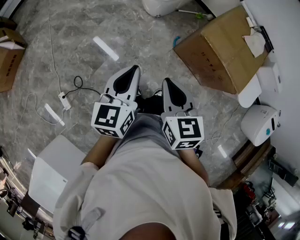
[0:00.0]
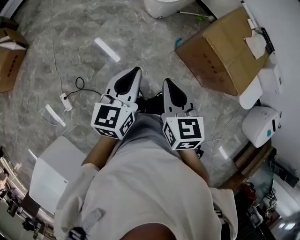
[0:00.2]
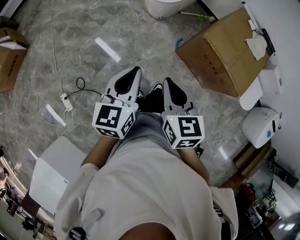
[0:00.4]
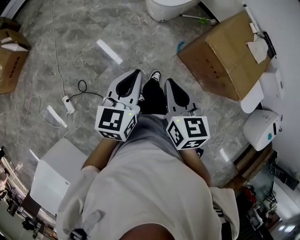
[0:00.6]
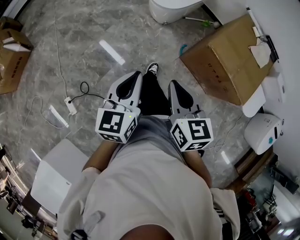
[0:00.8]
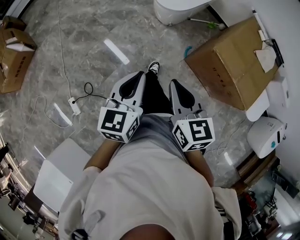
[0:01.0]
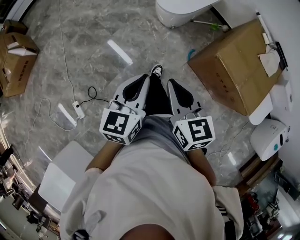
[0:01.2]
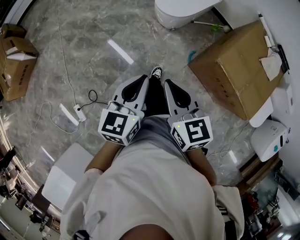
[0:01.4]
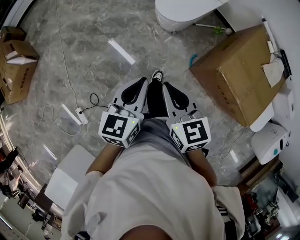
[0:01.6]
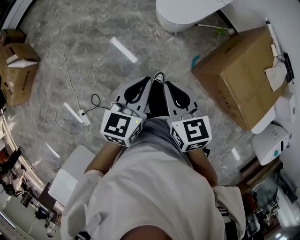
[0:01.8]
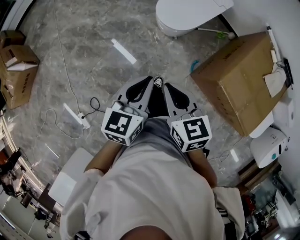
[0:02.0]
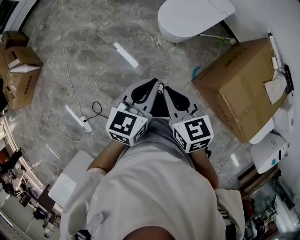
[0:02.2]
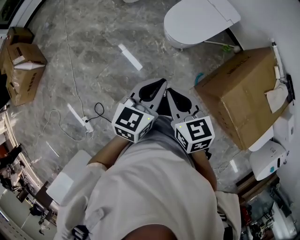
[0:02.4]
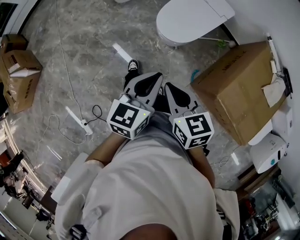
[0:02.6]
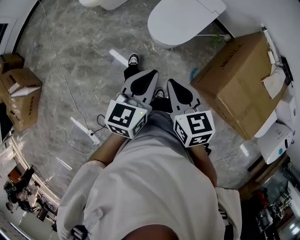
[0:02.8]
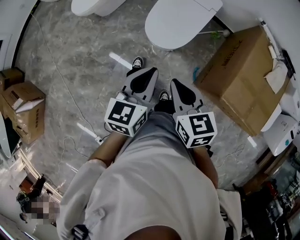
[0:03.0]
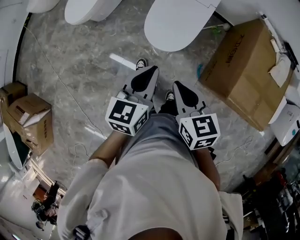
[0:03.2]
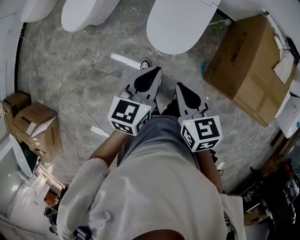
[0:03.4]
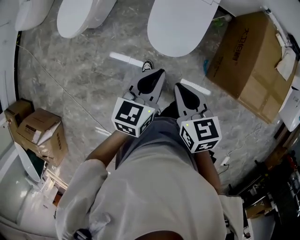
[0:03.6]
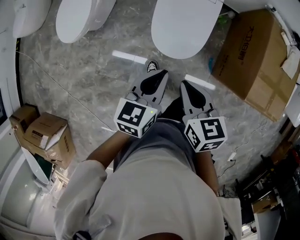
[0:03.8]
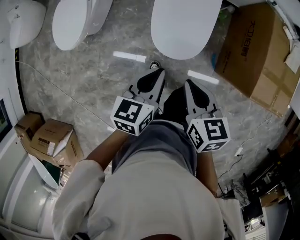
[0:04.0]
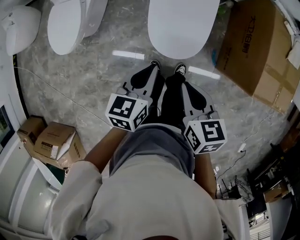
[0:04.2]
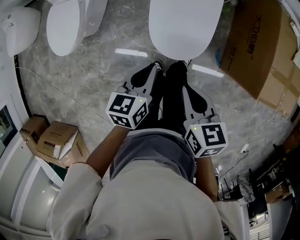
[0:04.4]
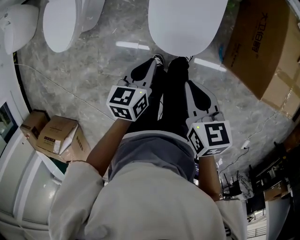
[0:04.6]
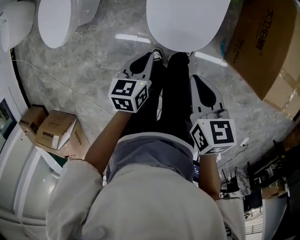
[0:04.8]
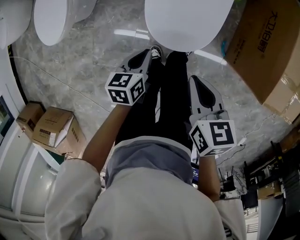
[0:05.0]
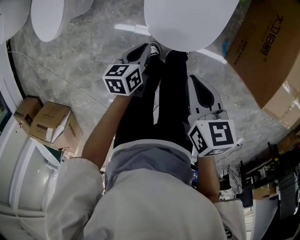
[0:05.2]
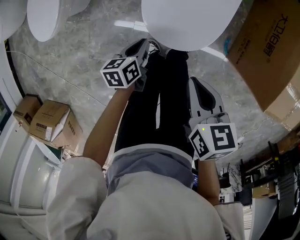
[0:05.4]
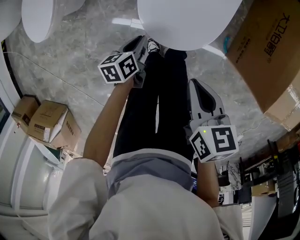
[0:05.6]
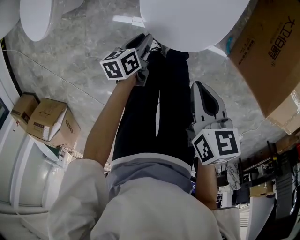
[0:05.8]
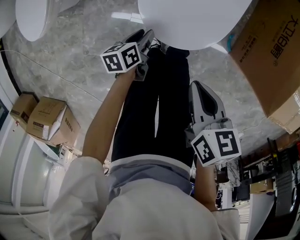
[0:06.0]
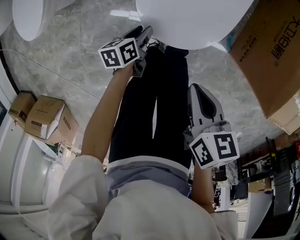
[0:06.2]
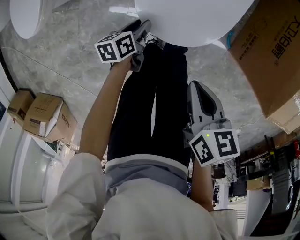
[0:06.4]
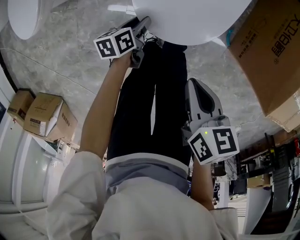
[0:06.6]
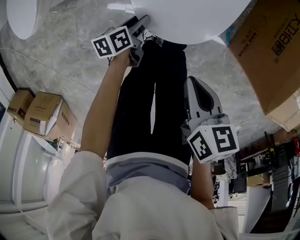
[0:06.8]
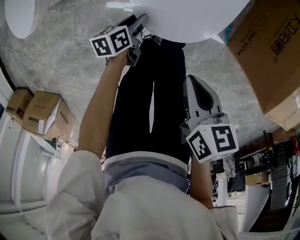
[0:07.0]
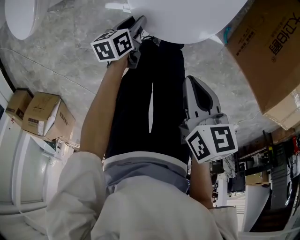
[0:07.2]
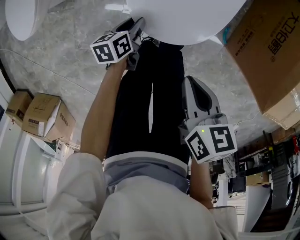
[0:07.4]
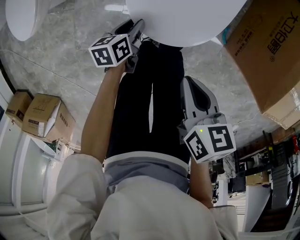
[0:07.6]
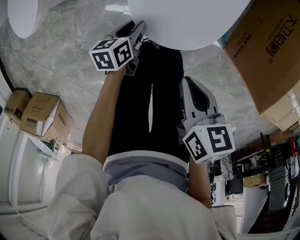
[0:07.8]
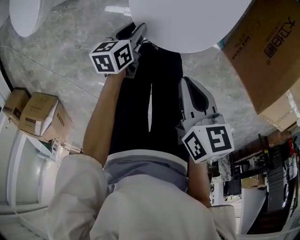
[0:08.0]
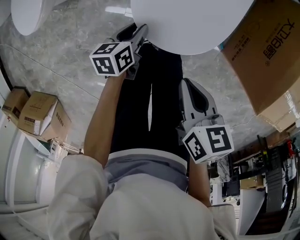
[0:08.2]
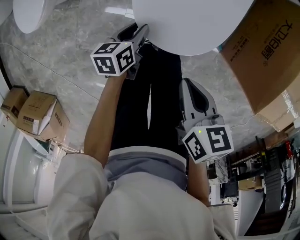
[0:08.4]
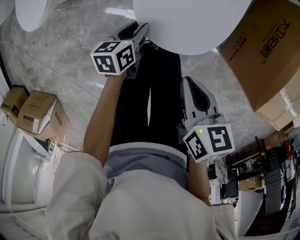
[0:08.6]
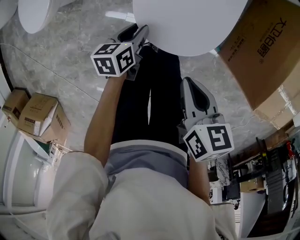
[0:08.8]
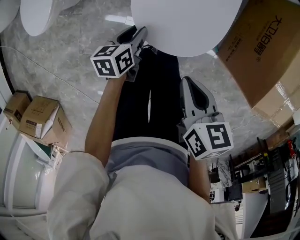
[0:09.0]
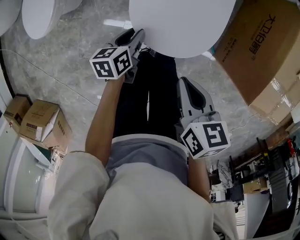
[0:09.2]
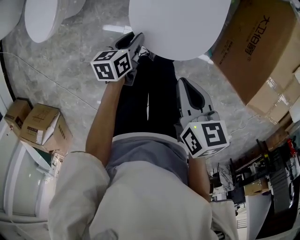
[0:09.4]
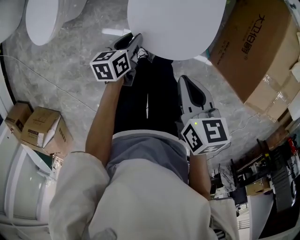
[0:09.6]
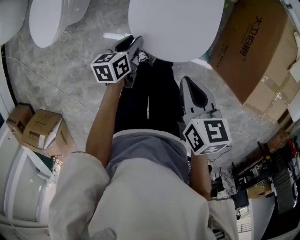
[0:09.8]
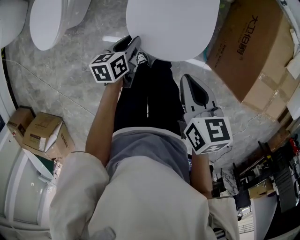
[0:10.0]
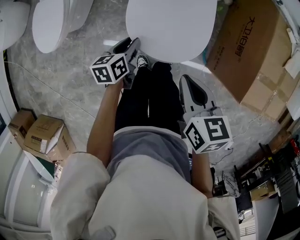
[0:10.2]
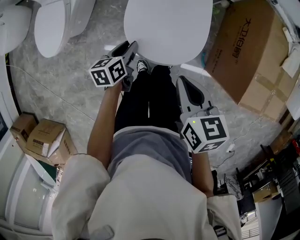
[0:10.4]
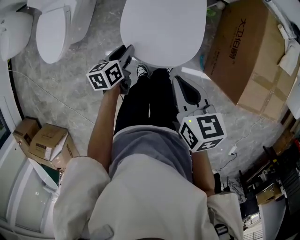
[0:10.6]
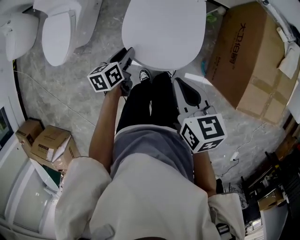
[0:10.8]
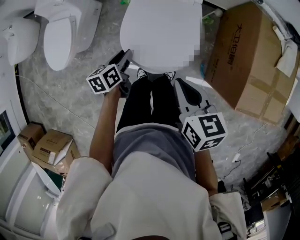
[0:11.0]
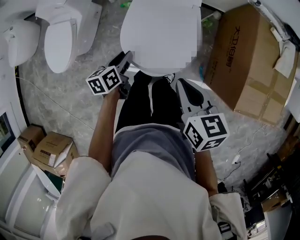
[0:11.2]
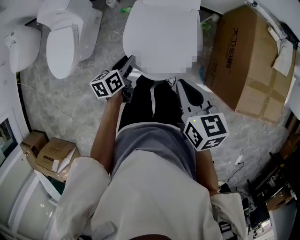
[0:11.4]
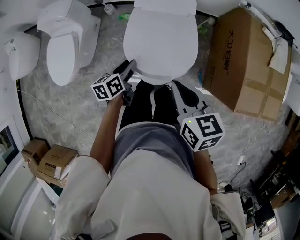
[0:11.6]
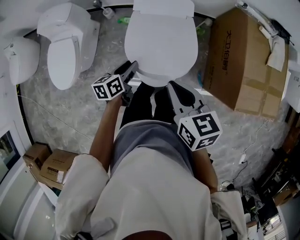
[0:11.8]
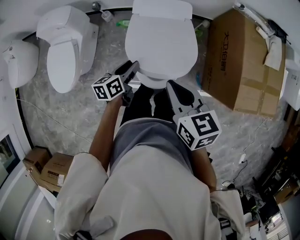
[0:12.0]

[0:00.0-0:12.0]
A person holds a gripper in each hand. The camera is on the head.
0:00.0 to 0:01.6: Both grippers travel together forward, approximately 25 cm.
0:01.6 to 0:03.0: Both grippers move forward, some 30 cm.
0:03.0 to 0:04.4: Both grippers travel together forward, downward and to the left, about 30 cm. The left gripper rotates some 30 degrees. The right gripper rotates roughly 30 degrees.
0:04.4 to 0:06.0: The right gripper heads downward, covering approximately 20 cm. The left gripper goes approximately 35 cm downward, turns by approximately 30 degrees, and opens its fingers.
0:06.0 to 0:07.6: The grippers stay close to where they were, moving slightly.
0:07.6 to 0:09.0: The two grippers go about 10 cm upward.
0:09.0 to 0:10.4: The two grippers go about 10 cm upward.
0:10.4 to 0:12.0: Both grippers travel together upward and forward, approximately 10 cm.

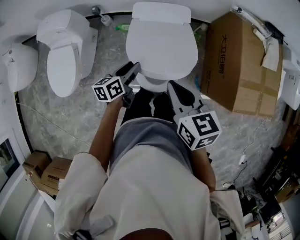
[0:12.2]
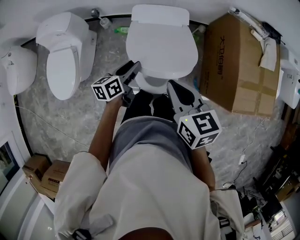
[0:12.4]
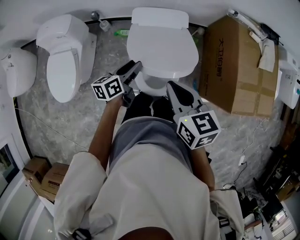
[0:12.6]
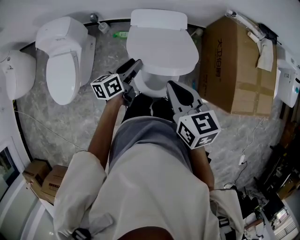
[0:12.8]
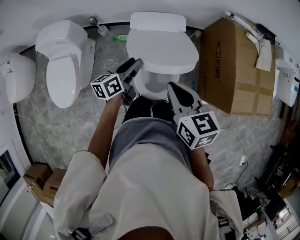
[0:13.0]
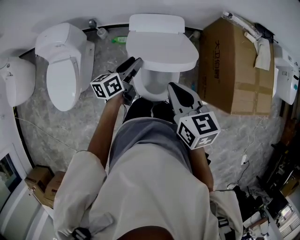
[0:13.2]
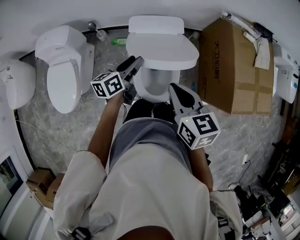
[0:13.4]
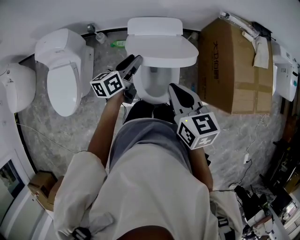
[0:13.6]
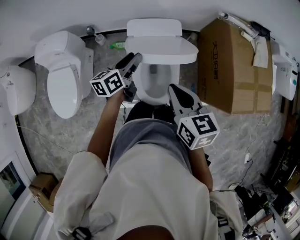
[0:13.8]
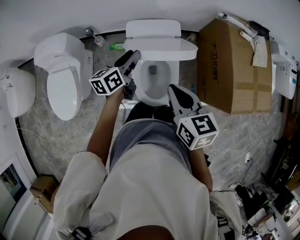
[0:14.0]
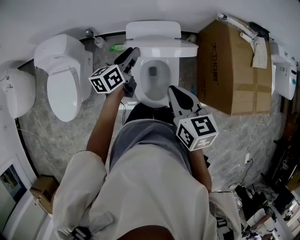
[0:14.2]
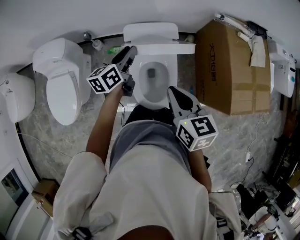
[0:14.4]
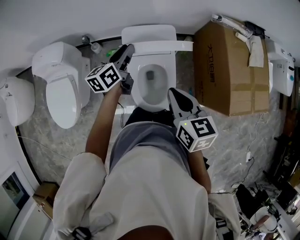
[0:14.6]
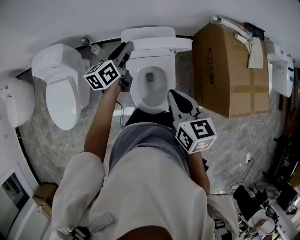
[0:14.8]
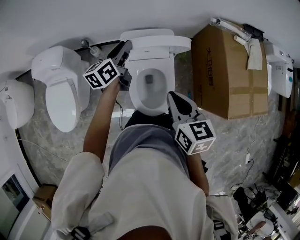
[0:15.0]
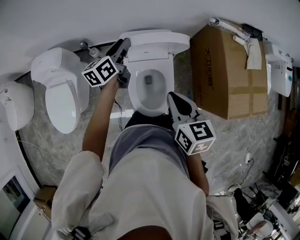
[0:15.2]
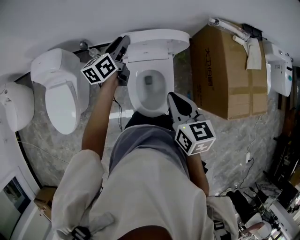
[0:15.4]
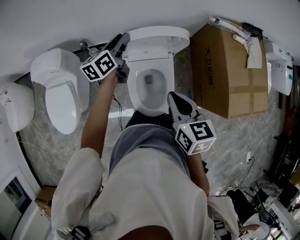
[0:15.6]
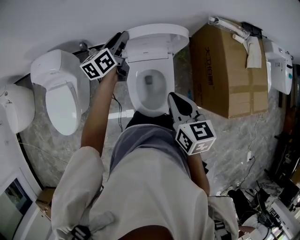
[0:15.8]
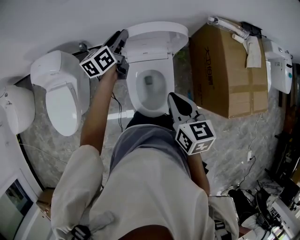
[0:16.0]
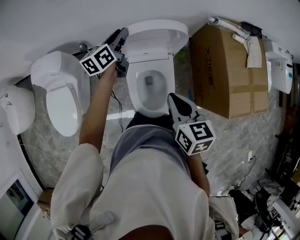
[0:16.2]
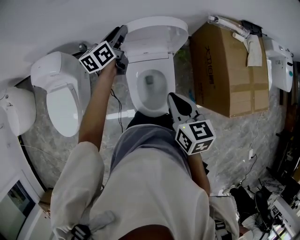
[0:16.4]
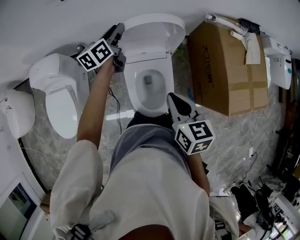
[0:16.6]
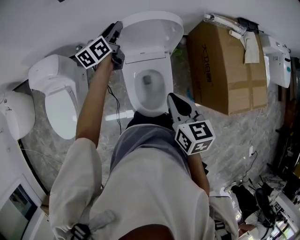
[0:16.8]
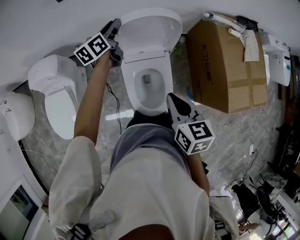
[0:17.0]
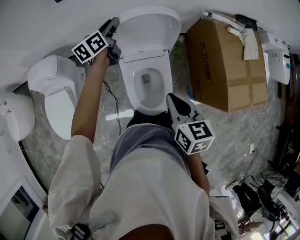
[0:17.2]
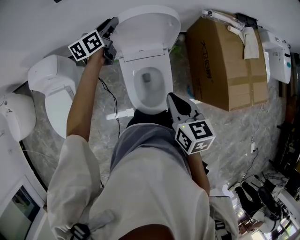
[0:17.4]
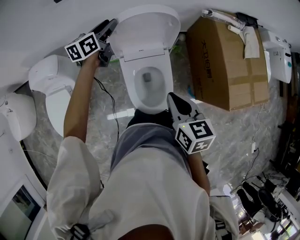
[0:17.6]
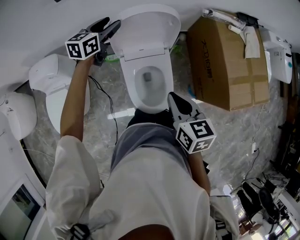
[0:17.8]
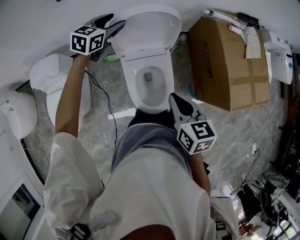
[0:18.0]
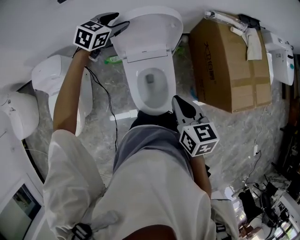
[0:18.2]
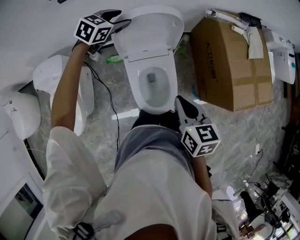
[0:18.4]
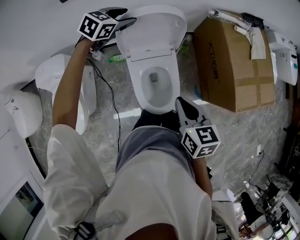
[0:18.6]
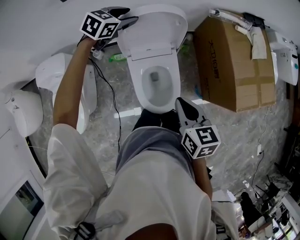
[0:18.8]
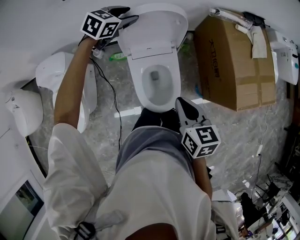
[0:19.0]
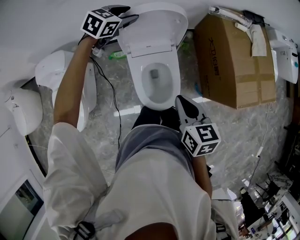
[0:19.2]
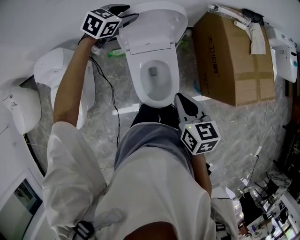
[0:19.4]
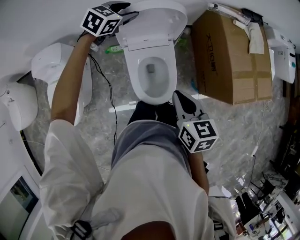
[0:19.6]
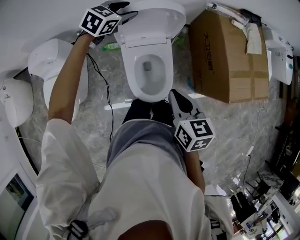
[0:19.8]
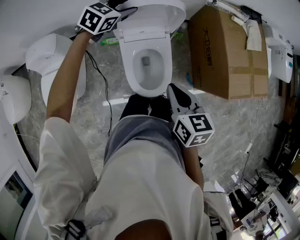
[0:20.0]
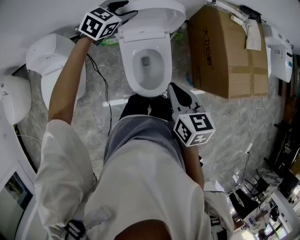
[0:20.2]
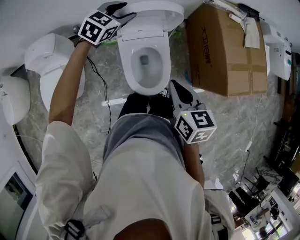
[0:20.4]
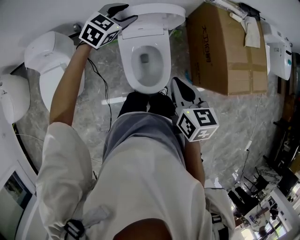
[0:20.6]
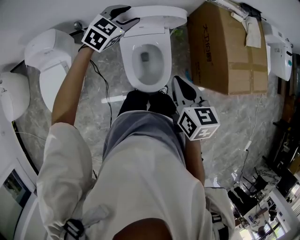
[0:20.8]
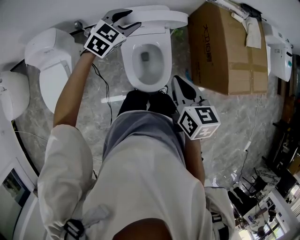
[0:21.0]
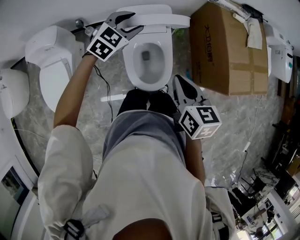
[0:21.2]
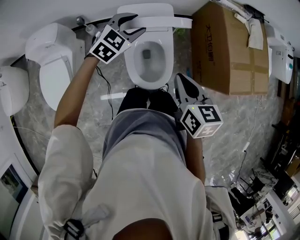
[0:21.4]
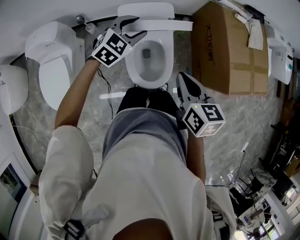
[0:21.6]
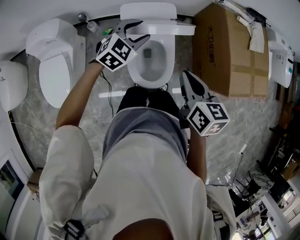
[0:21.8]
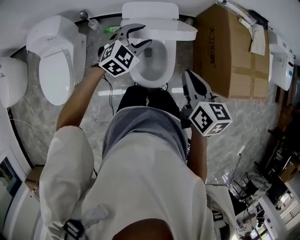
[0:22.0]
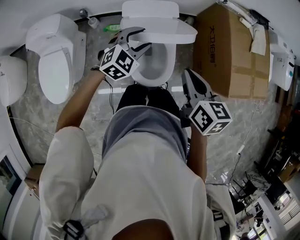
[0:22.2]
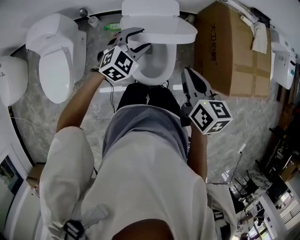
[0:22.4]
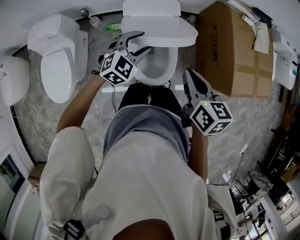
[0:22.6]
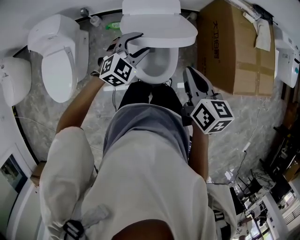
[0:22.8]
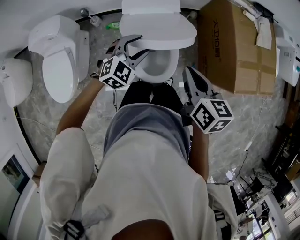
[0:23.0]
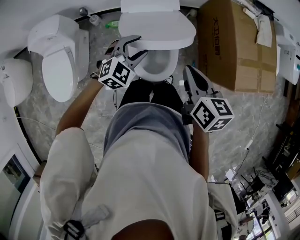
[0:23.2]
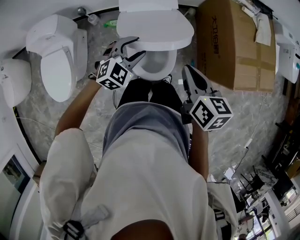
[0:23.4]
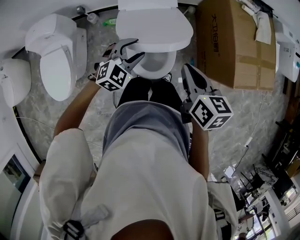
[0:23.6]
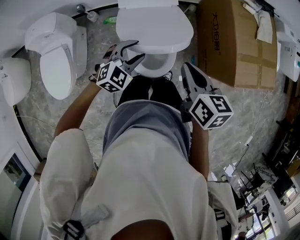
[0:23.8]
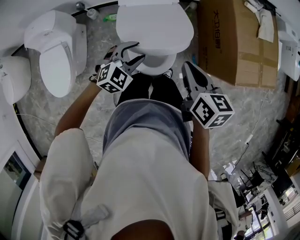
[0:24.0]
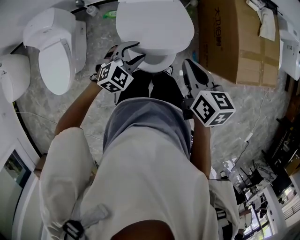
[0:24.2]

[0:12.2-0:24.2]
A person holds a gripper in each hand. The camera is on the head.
0:12.2 to 0:13.8: The left gripper moves forward and upward, roughly 15 cm.
0:13.8 to 0:15.2: The left gripper heads forward, covering about 15 cm.
0:15.2 to 0:16.6: The left gripper moves forward, about 10 cm.
0:16.6 to 0:18.2: The left gripper rolls clockwise, seen from behind, by about 50 degrees, and opens its fingers.
0:18.2 to 0:19.8: The left gripper ends up roughly 5 cm from where it was.
0:19.8 to 0:21.2: The left gripper is displaced backward by roughly 10 cm.
0:21.2 to 0:22.6: The left gripper is displaced backward by some 10 cm.
0:22.6 to 0:24.2: The left gripper shifts roughly 10 cm backward and downward.
